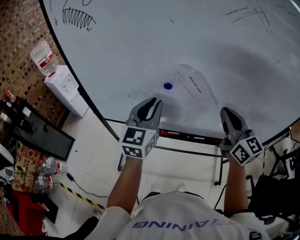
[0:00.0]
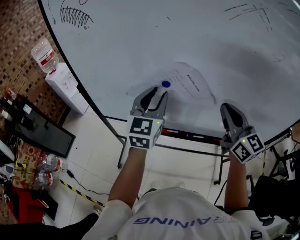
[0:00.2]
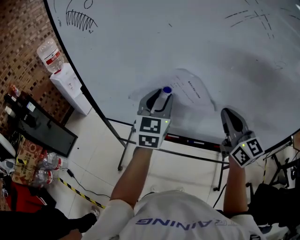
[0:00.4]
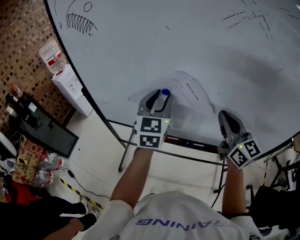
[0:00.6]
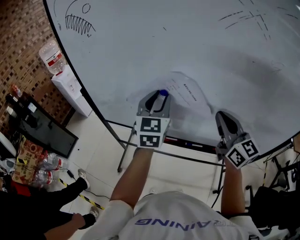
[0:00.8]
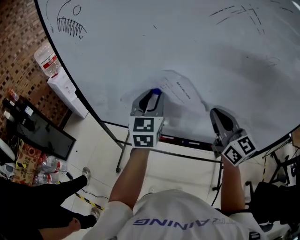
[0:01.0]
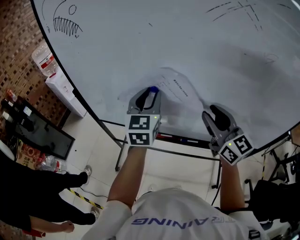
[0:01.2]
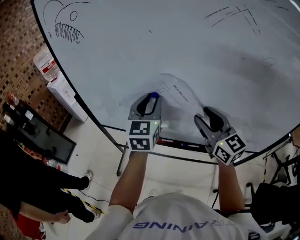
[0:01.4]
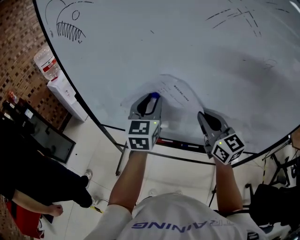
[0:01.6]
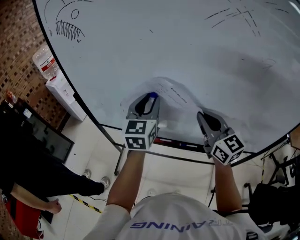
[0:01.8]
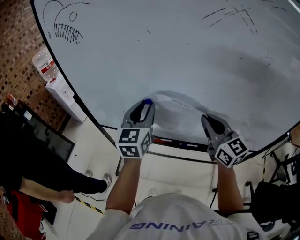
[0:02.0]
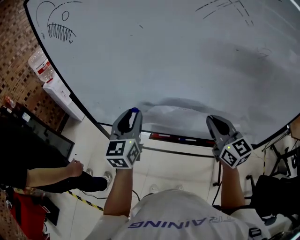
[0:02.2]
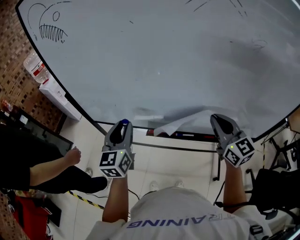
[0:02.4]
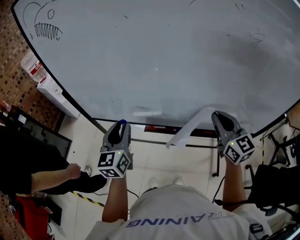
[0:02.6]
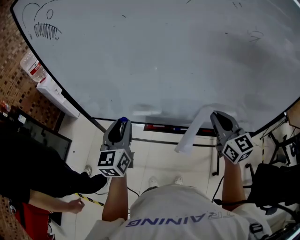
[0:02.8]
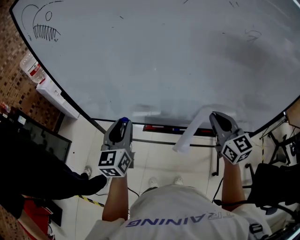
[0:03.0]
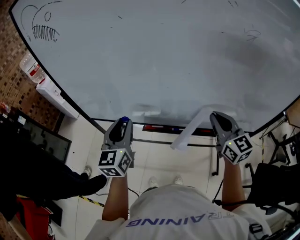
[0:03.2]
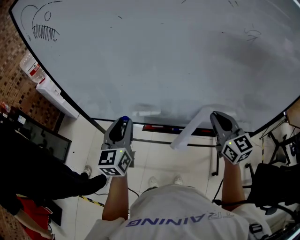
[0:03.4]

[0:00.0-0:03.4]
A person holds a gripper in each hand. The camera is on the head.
0:00.0 to 0:01.6: The right gripper moves approximately 5 cm, and opens, then closes again. Meanwhile the left gripper ends up approximately 5 cm from where it was.
0:01.6 to 0:03.4: The left gripper heads backward, downward and to the left, covering about 15 cm, while the right gripper travels to the right and backward by about 10 cm.

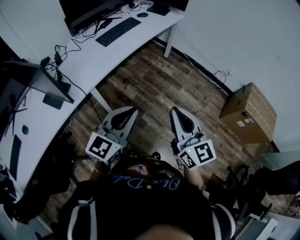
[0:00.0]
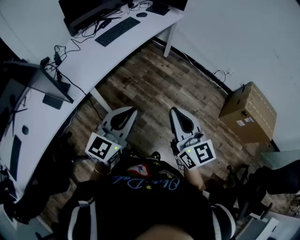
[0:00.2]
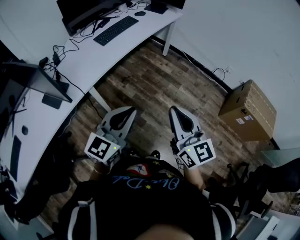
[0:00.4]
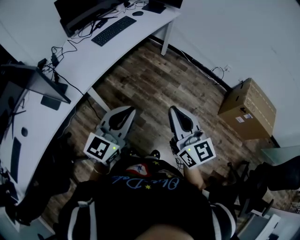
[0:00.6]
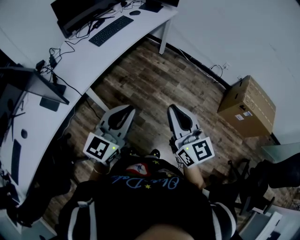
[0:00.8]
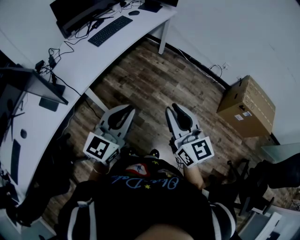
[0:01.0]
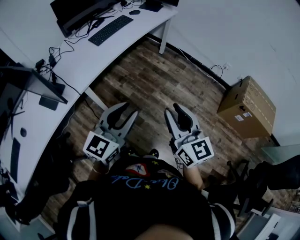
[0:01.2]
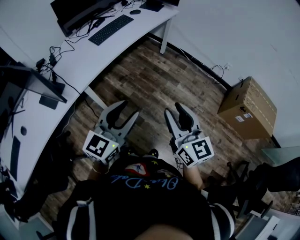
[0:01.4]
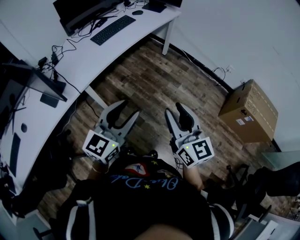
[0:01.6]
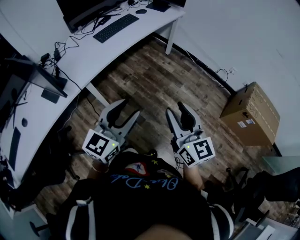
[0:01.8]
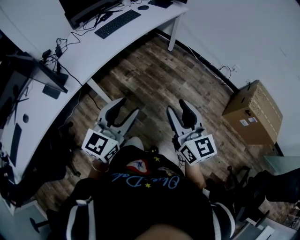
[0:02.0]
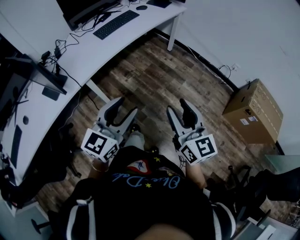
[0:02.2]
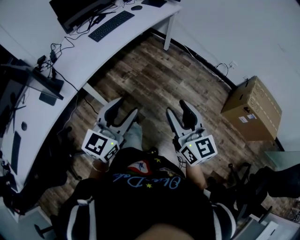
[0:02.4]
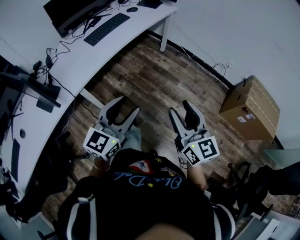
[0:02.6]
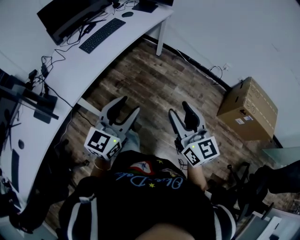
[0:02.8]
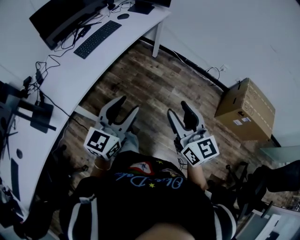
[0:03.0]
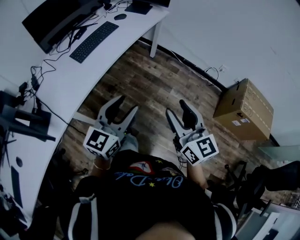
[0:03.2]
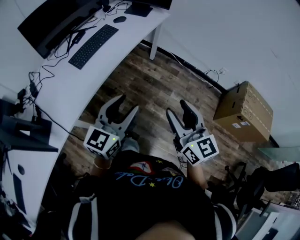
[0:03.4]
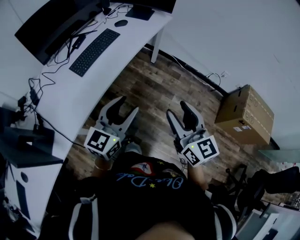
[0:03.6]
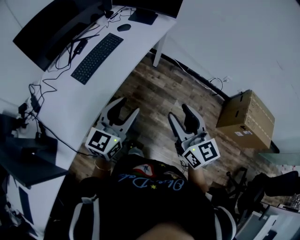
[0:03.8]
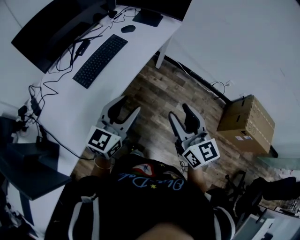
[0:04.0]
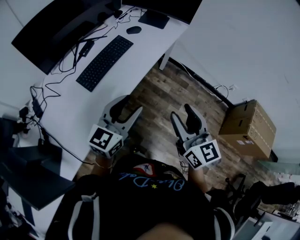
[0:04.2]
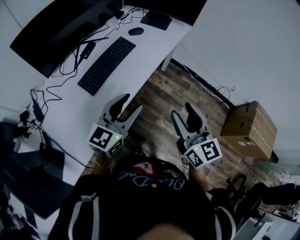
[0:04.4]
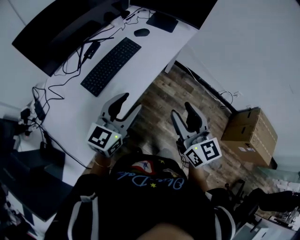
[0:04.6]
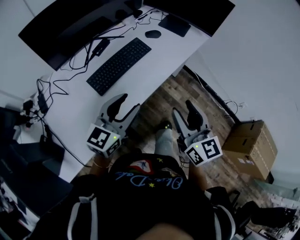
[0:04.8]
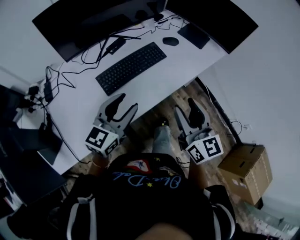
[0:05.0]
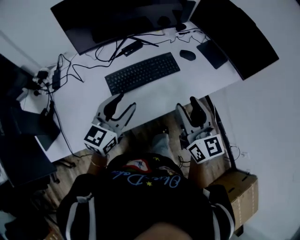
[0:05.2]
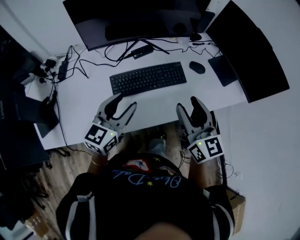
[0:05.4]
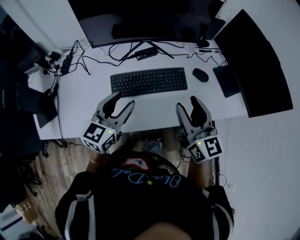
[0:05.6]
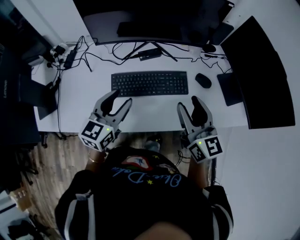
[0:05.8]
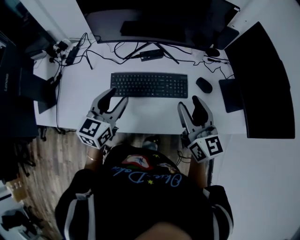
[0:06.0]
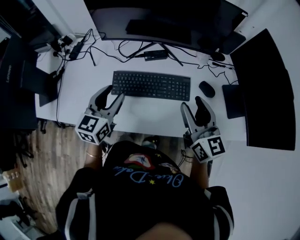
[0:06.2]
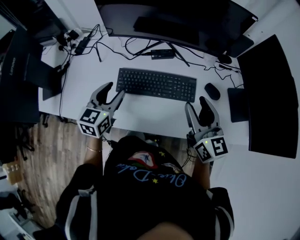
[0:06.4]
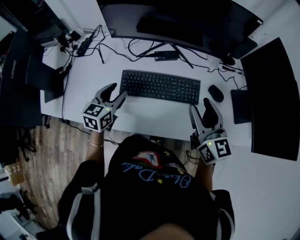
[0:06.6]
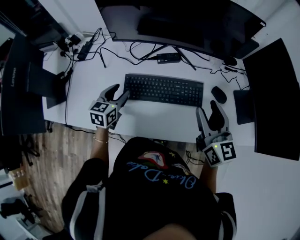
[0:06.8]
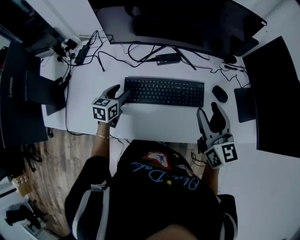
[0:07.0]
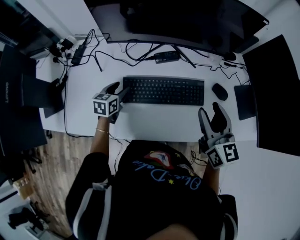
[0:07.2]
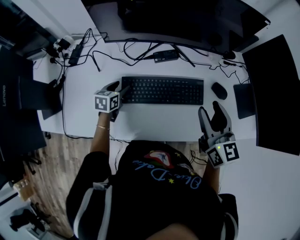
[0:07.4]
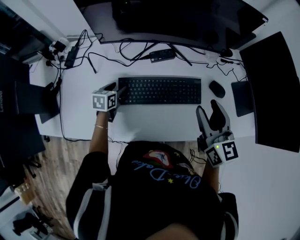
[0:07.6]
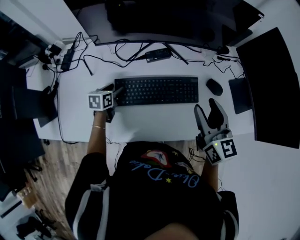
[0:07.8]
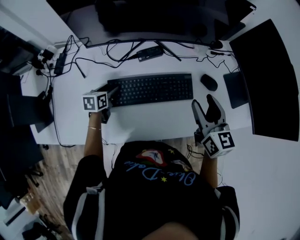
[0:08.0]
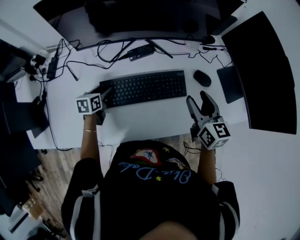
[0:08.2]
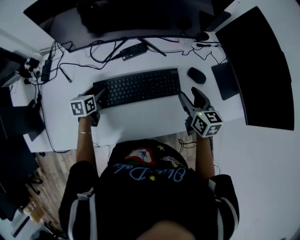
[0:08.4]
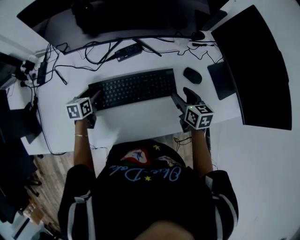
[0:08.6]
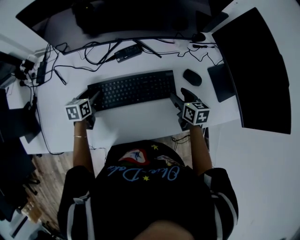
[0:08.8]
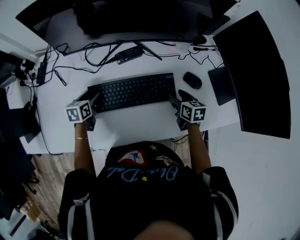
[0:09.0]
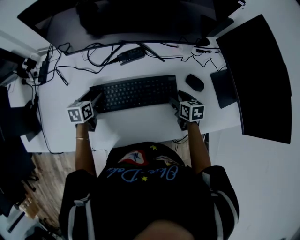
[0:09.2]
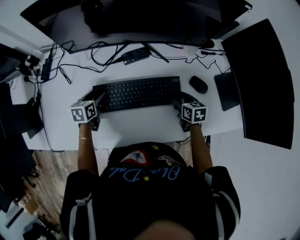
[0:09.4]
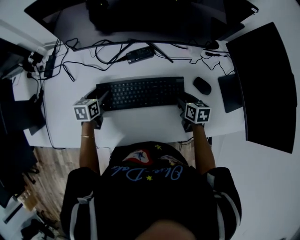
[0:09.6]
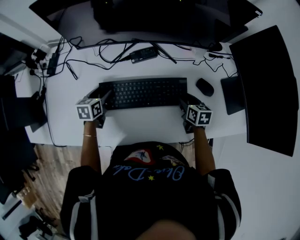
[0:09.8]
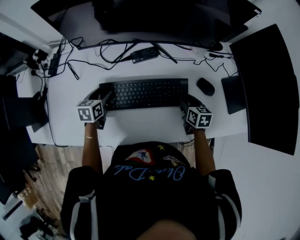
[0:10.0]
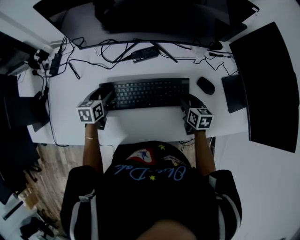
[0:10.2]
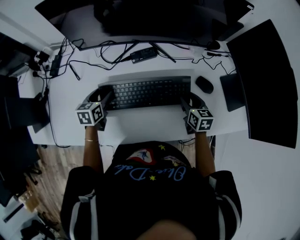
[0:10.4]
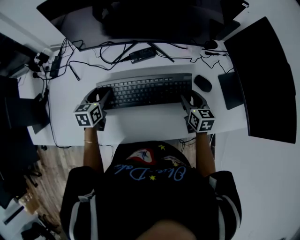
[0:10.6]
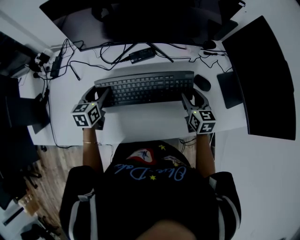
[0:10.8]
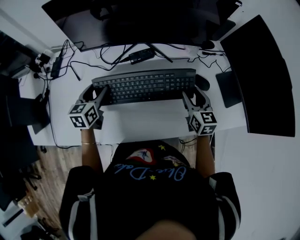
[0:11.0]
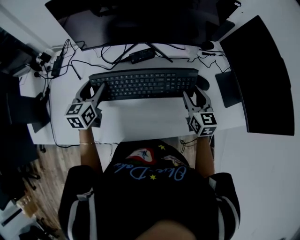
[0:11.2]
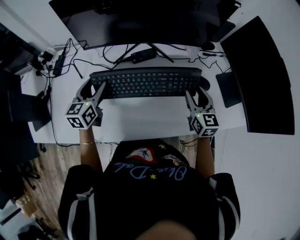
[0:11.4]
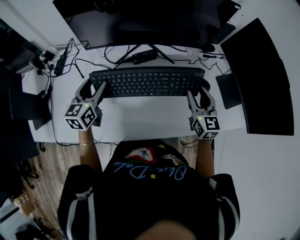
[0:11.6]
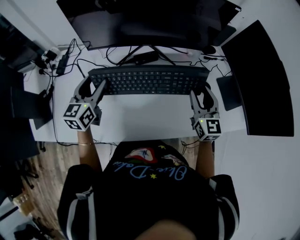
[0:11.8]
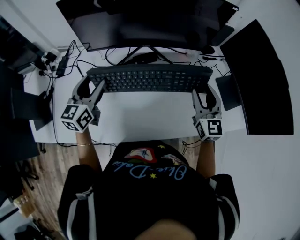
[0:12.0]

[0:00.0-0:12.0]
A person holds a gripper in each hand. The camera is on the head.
0:00.0 to 0:01.6: The right gripper goes about 5 cm to the right, and opens its fingers. The left gripper opens.
0:01.6 to 0:03.0: Both grippers move forward, roughly 15 cm.
0:03.0 to 0:04.4: The grippers both shift forward and to the left by approximately 30 cm.
0:04.4 to 0:06.0: The right gripper ends up approximately 40 cm from where it was, and swivels roughly 50 degrees; the left gripper shifts by approximately 25 cm, and changes its angle by roughly 60 degrees.
0:06.0 to 0:07.6: The left gripper moves downward, forward and to the left, about 30 cm, and angles its fingers downward, by about 30 degrees; the right gripper heads forward, covering some 5 cm.
0:07.6 to 0:09.0: The right gripper is displaced downward by some 25 cm, and tilts its fingers about 30 degrees downward.
0:09.0 to 0:10.4: The grippers stay close to where they were, moving slightly.
0:10.4 to 0:12.0: The two grippers go about 20 cm upward. The left gripper turns by roughly 30 degrees; the right gripper points its fingers roughly 30 degrees further upward.

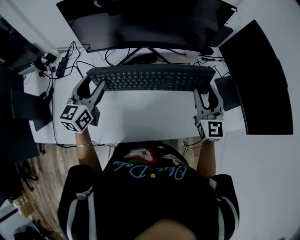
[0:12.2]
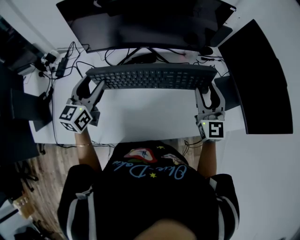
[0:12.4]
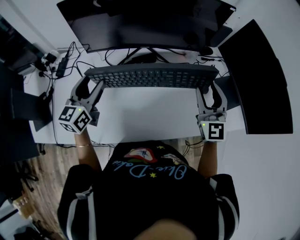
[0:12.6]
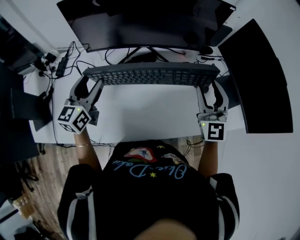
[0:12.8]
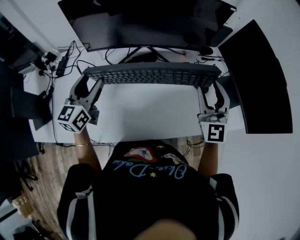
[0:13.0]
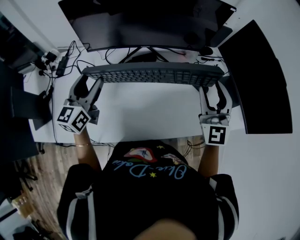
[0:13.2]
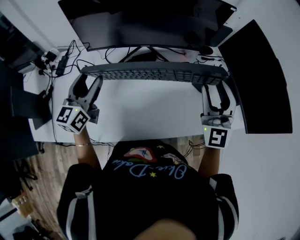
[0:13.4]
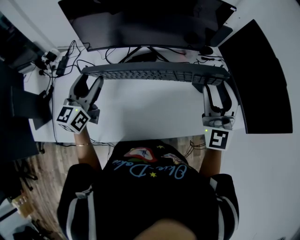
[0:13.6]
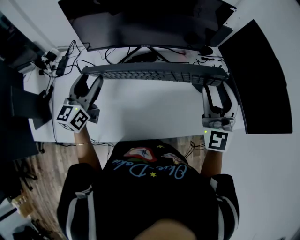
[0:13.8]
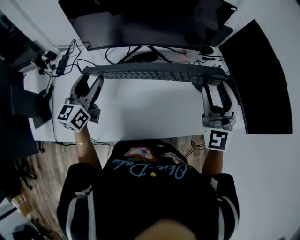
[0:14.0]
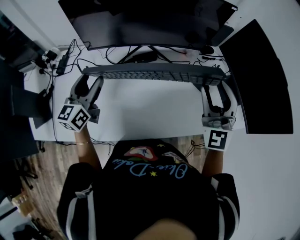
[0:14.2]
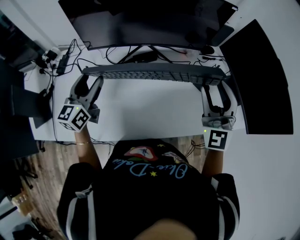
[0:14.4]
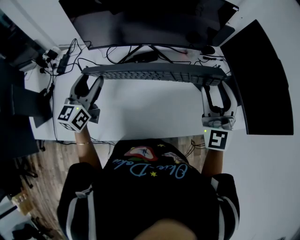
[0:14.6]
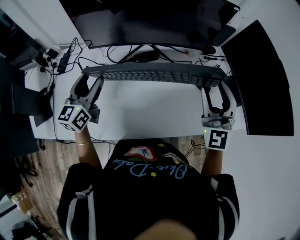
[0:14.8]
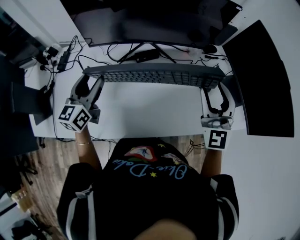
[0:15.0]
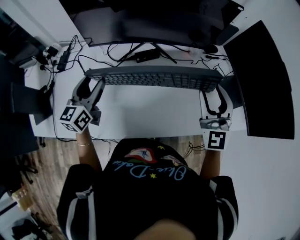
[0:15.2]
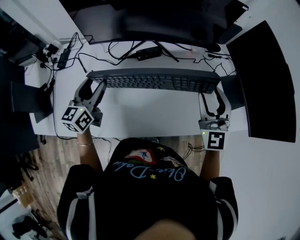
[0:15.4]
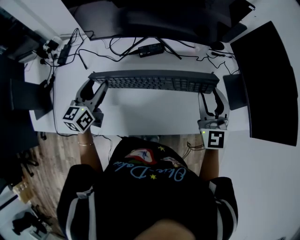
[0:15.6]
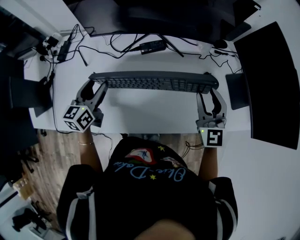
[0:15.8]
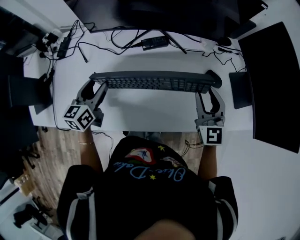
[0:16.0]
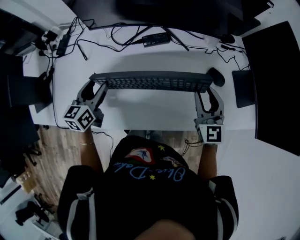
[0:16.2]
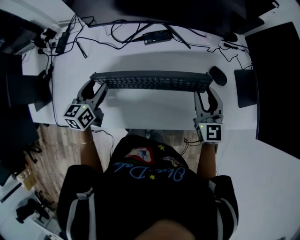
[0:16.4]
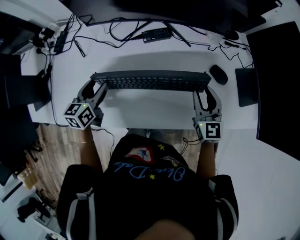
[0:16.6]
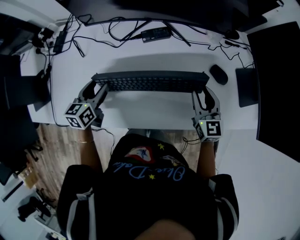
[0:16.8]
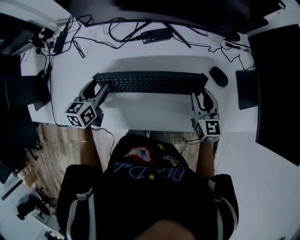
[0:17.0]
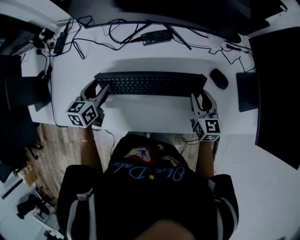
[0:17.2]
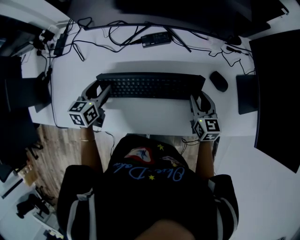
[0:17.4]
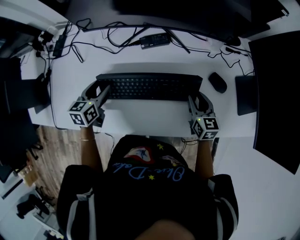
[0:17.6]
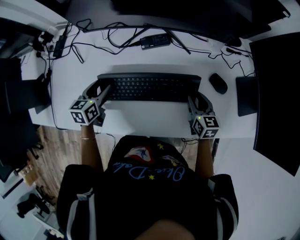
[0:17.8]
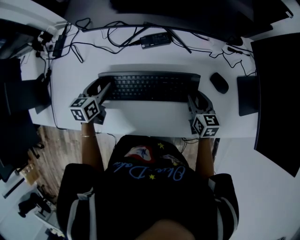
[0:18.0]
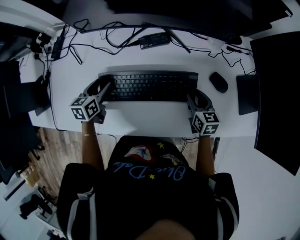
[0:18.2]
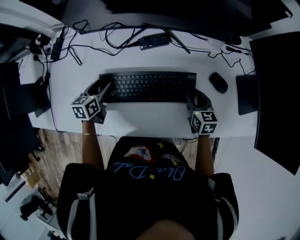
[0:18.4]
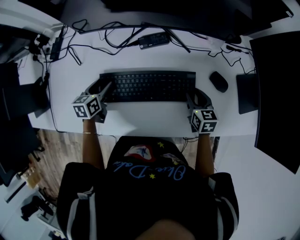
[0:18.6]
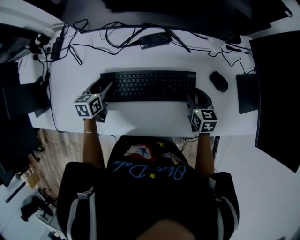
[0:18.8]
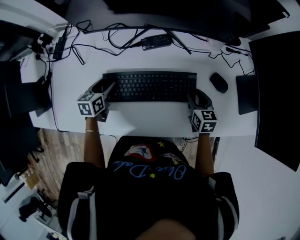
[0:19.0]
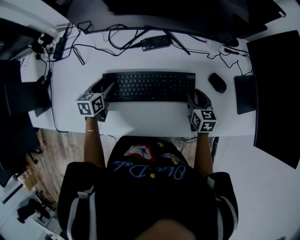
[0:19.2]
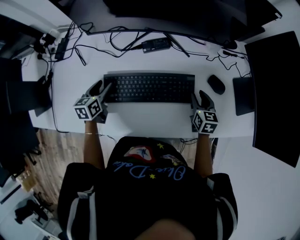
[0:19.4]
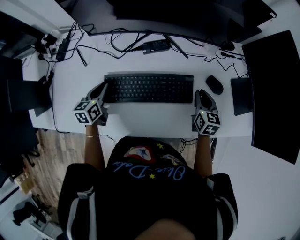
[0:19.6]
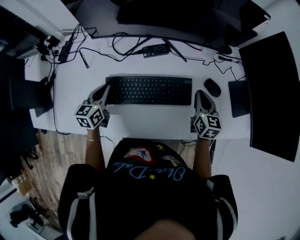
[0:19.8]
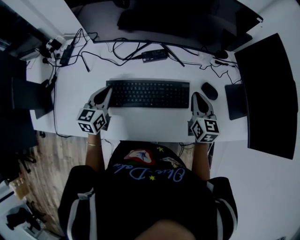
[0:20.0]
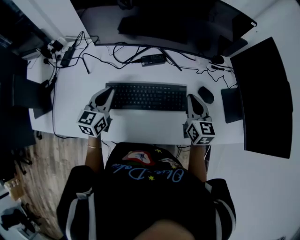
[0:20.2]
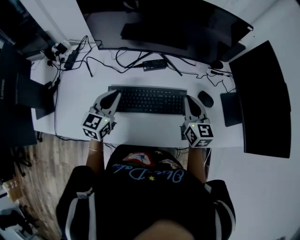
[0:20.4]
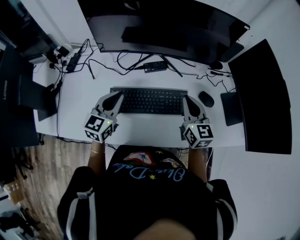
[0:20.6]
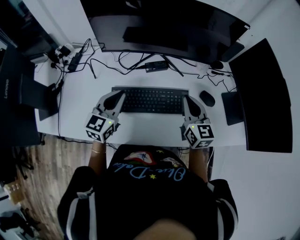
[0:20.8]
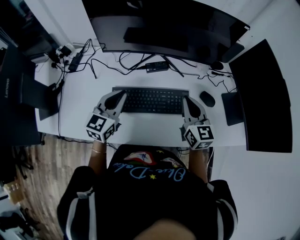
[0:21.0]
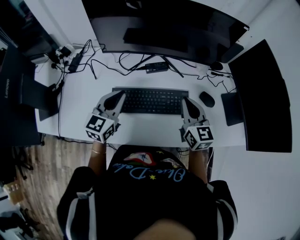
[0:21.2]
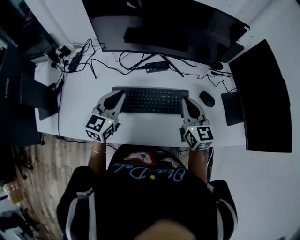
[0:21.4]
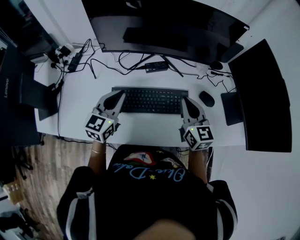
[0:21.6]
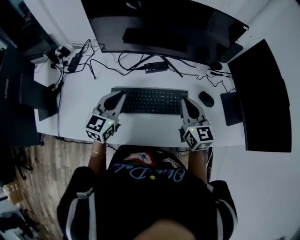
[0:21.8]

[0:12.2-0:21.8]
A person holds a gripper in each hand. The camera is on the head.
0:12.2 to 0:13.8: The right gripper moves upward, some 10 cm, and swivels roughly 30 degrees.
0:13.8 to 0:15.4: The two grippers go roughly 5 cm downward.
0:15.4 to 0:17.0: The right gripper heads downward, covering about 20 cm, and changes its angle by some 40 degrees. Meanwhile the left gripper moves downward, approximately 10 cm, and swivels approximately 20 degrees.
0:17.0 to 0:18.6: The grippers both shift downward by roughly 10 cm. The right gripper rotates about 20 degrees.
0:18.6 to 0:20.2: The two grippers go approximately 15 cm upward. The left gripper turns by approximately 30 degrees, and closes up; the right gripper turns by roughly 20 degrees, and closes its fingers.
0:20.2 to 0:21.8: The right gripper goes approximately 5 cm to the left and upward. Meanwhile the left gripper goes approximately 5 cm upward.
